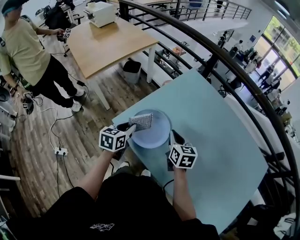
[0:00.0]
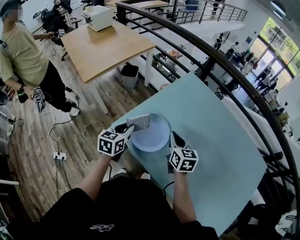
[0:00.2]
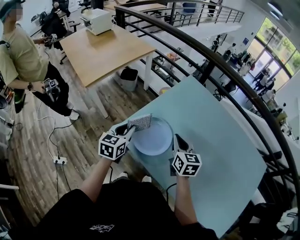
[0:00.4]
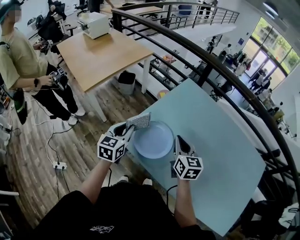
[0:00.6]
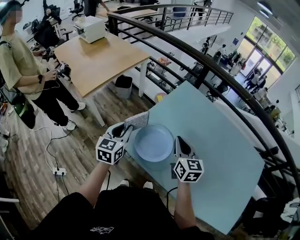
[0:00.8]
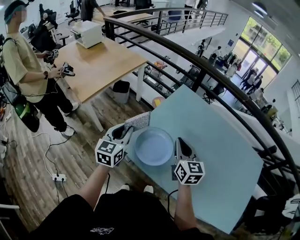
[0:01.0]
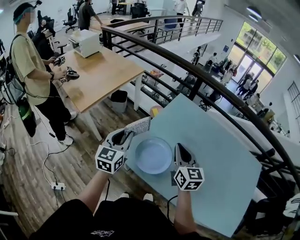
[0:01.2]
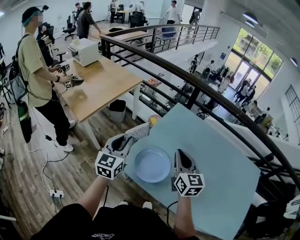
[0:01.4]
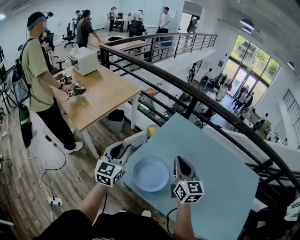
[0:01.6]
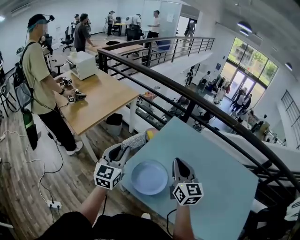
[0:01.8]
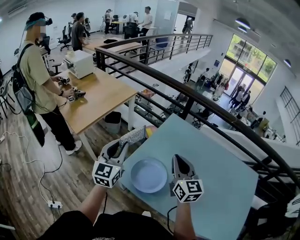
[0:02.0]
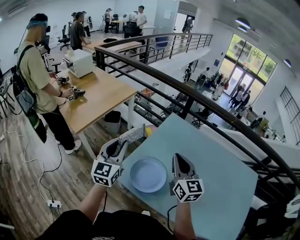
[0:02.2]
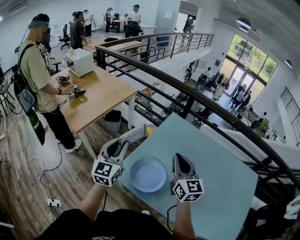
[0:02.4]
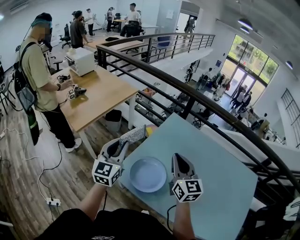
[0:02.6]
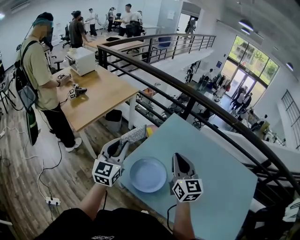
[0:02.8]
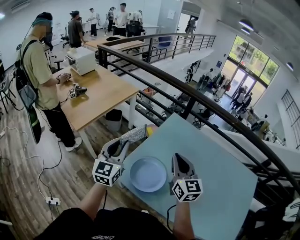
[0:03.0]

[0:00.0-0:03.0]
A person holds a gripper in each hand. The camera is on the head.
0:00.0 to 0:01.6: The left gripper heads upward and to the left, covering some 20 cm, and changes its angle by about 30 degrees; the right gripper is displaced upward by some 20 cm, and rotates roughly 30 degrees.
0:01.6 to 0:03.0: The grippers move only a little.

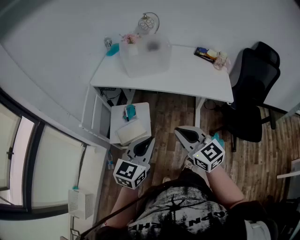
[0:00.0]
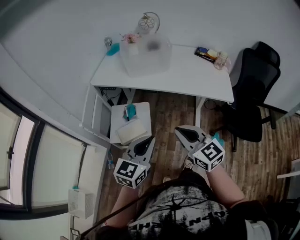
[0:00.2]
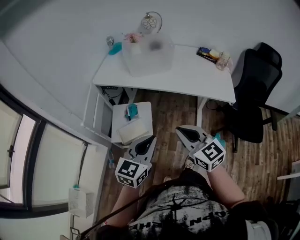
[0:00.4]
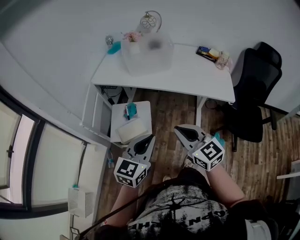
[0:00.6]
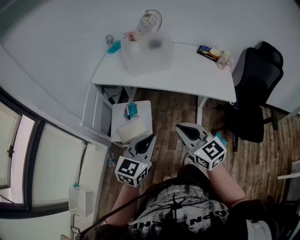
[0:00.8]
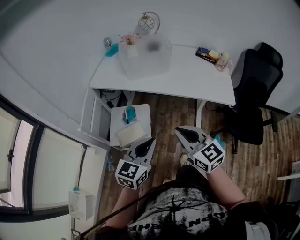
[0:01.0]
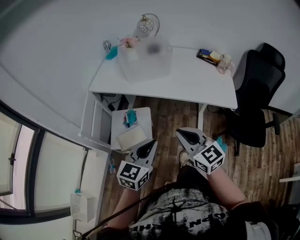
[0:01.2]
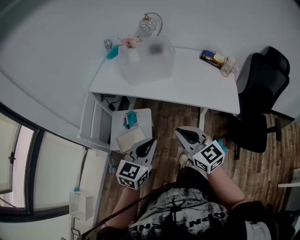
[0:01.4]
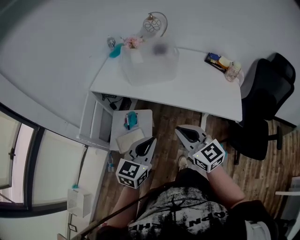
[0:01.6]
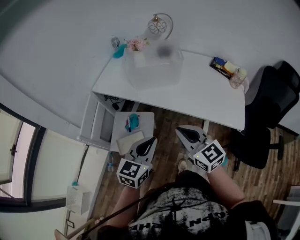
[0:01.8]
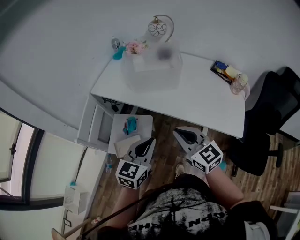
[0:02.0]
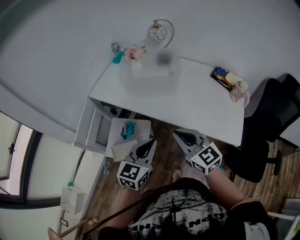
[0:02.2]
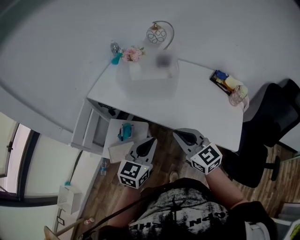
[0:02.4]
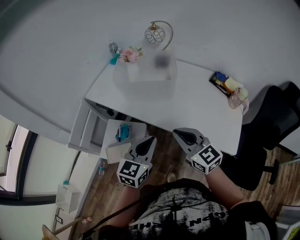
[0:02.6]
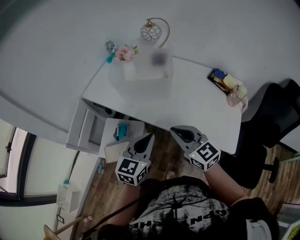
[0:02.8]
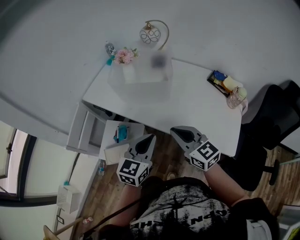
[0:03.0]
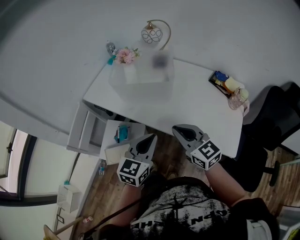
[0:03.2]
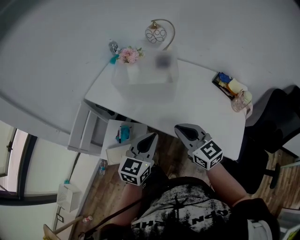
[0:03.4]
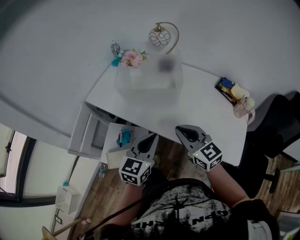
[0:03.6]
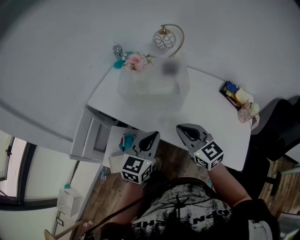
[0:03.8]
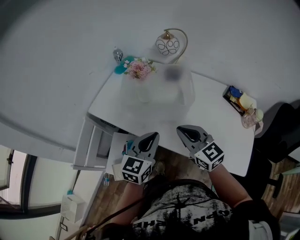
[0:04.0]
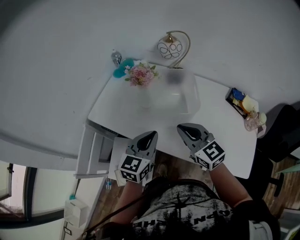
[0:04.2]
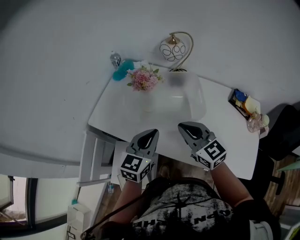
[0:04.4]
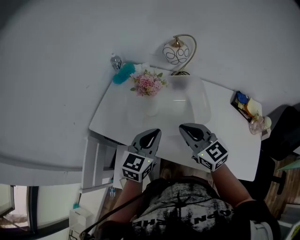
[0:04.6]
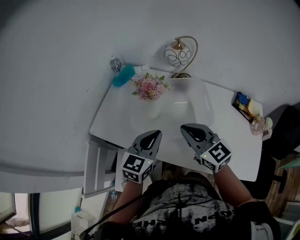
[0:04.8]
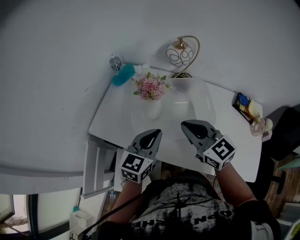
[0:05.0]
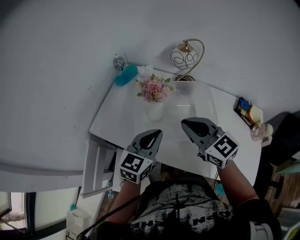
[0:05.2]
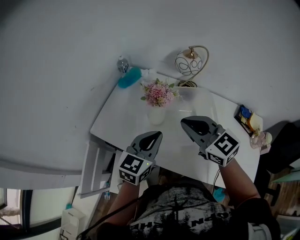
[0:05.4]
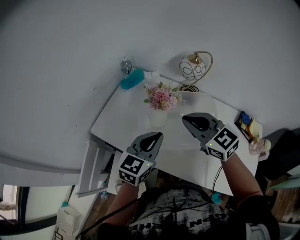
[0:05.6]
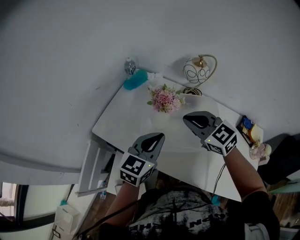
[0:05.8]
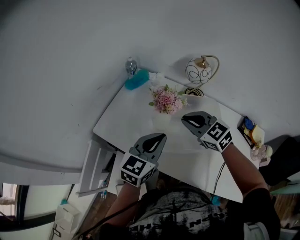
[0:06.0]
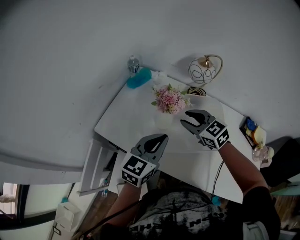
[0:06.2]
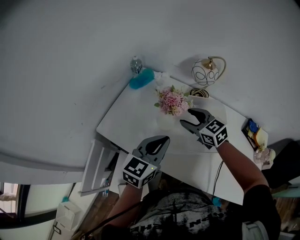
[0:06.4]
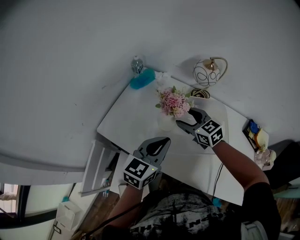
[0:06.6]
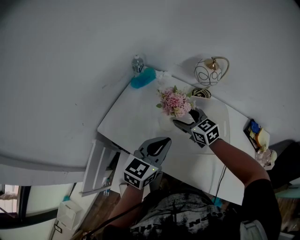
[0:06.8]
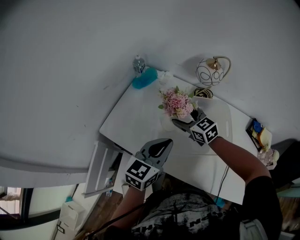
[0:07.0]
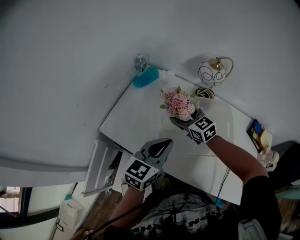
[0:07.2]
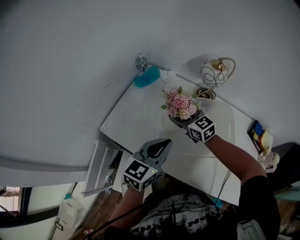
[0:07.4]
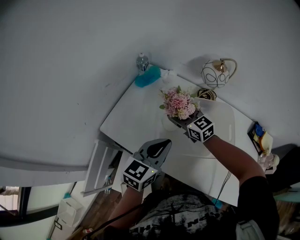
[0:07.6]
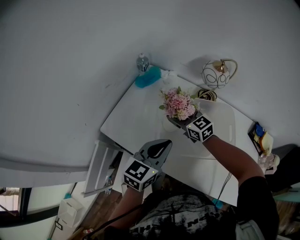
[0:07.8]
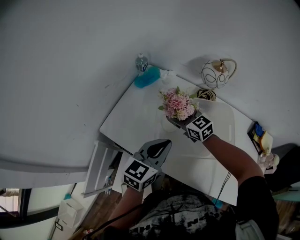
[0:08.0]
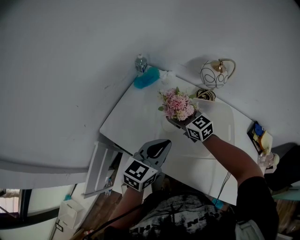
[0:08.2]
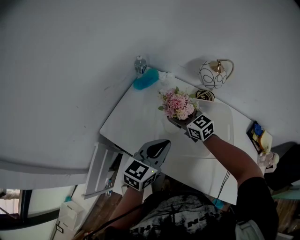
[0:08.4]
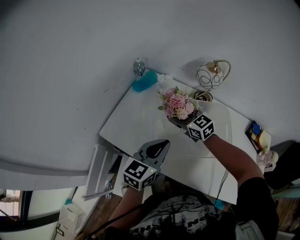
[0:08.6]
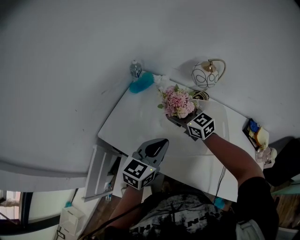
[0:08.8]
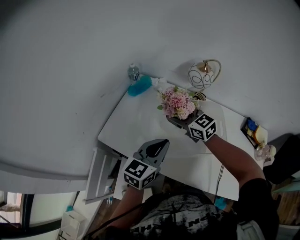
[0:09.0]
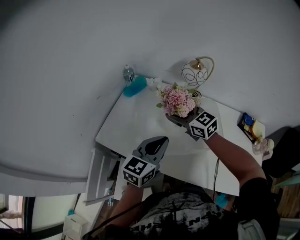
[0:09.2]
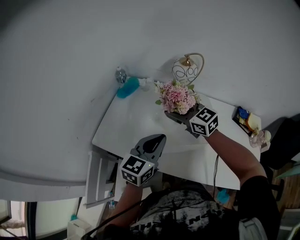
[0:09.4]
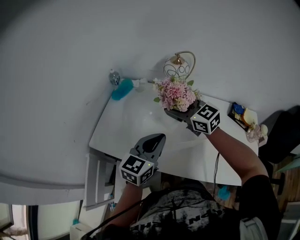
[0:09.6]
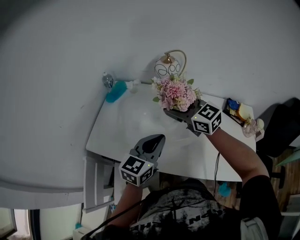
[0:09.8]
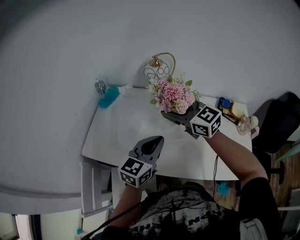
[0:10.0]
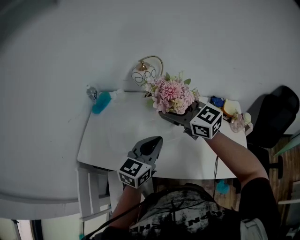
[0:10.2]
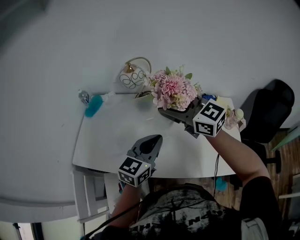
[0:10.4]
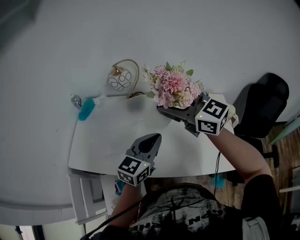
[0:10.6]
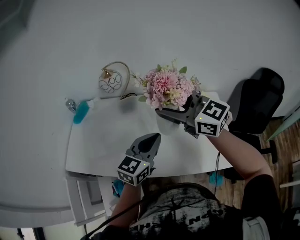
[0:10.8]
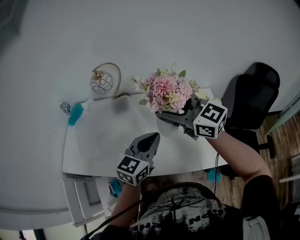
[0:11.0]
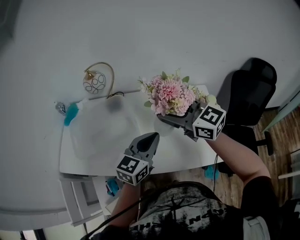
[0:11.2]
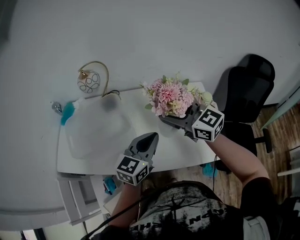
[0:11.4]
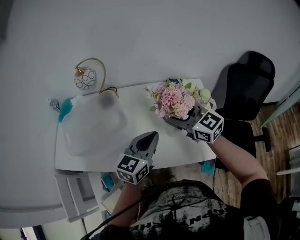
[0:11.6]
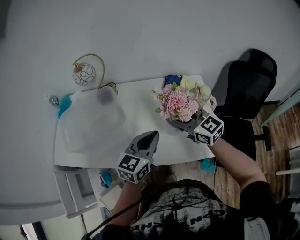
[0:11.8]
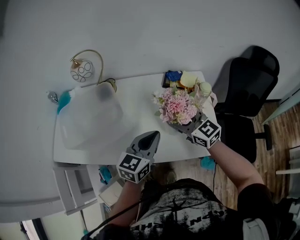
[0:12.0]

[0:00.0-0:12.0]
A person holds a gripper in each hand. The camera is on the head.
0:00.0 to 0:01.6: Both grippers travel together forward, about 15 cm.
0:01.6 to 0:03.0: Both grippers travel together forward and to the right, roughly 20 cm.
0:03.0 to 0:04.4: The two grippers go roughly 25 cm forward.
0:04.4 to 0:06.0: The left gripper moves forward, about 10 cm; the right gripper travels forward by approximately 15 cm, and changes its angle by approximately 30 degrees.
0:06.0 to 0:07.6: The right gripper travels forward, downward and to the left by about 15 cm, and opens up.
0:07.6 to 0:09.0: The right gripper heads upward, covering roughly 5 cm.
0:09.0 to 0:10.4: The left gripper is displaced to the right by some 20 cm, while the right gripper shifts roughly 30 cm to the right, upward and backward.
0:10.4 to 0:12.0: The right gripper heads to the right and downward, covering some 30 cm, while the left gripper goes about 20 cm to the right.

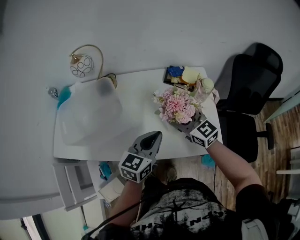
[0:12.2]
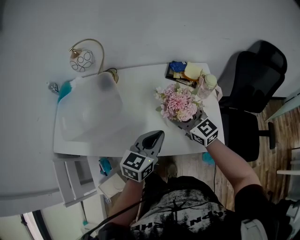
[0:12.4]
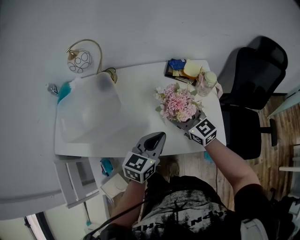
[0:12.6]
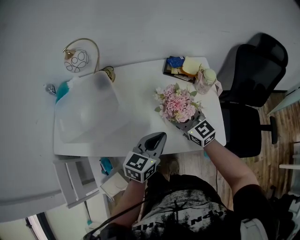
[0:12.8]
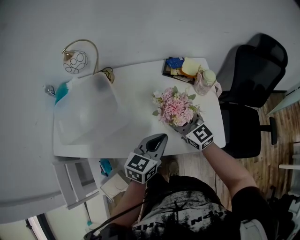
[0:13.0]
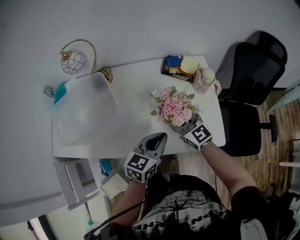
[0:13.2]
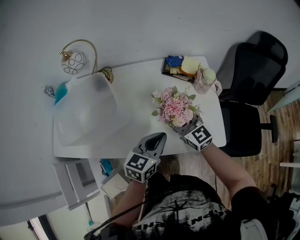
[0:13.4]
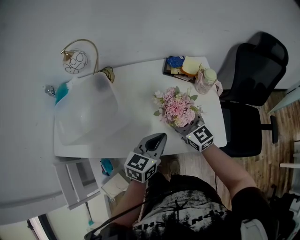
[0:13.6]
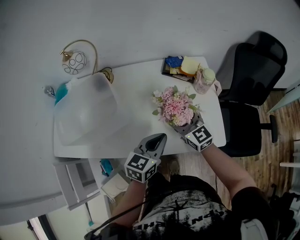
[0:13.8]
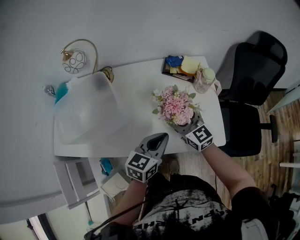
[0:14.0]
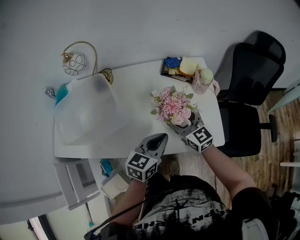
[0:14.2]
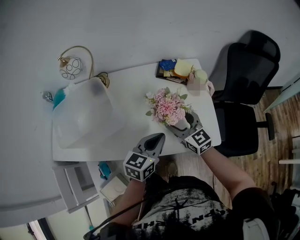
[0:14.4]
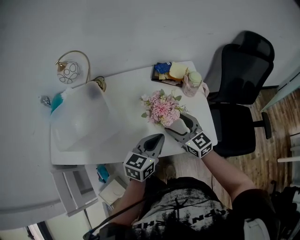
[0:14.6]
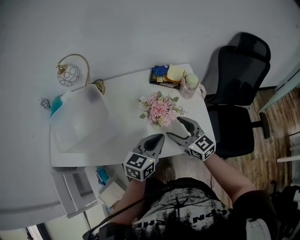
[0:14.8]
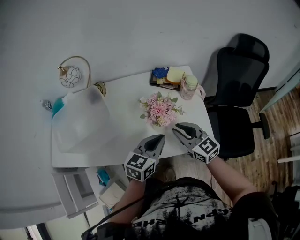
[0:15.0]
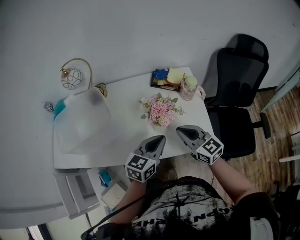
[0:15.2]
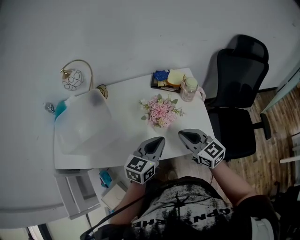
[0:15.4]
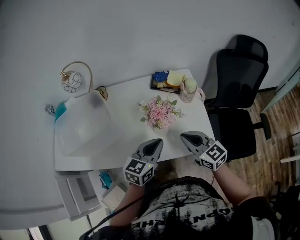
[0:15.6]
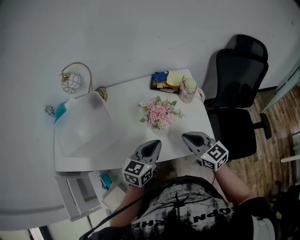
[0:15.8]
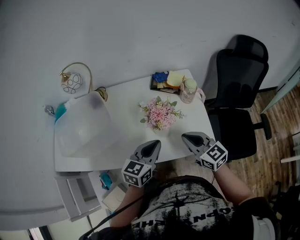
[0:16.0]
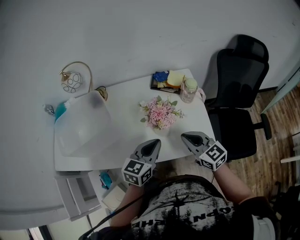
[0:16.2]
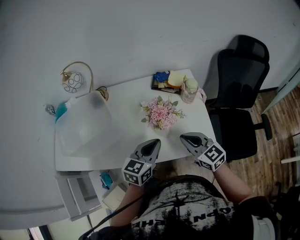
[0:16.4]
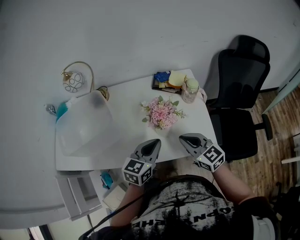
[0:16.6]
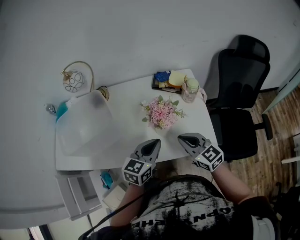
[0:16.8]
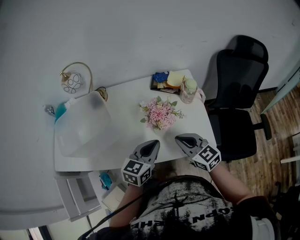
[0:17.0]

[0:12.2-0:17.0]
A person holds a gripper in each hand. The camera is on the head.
0:12.2 to 0:13.8: The left gripper heads downward, covering some 5 cm.
0:13.8 to 0:15.4: The right gripper shifts about 10 cm backward and to the right, and closes. Meanwhile the left gripper moves roughly 5 cm.
0:15.4 to 0:17.0: The grippers make only small movements.

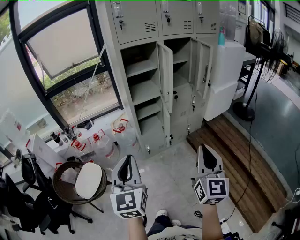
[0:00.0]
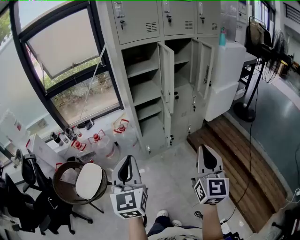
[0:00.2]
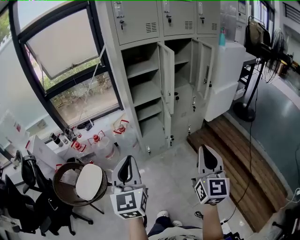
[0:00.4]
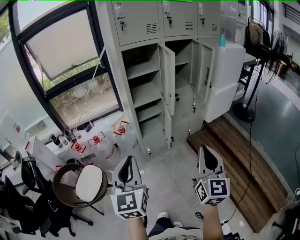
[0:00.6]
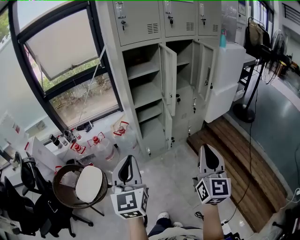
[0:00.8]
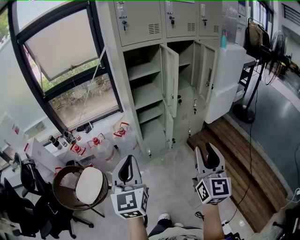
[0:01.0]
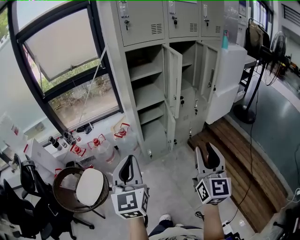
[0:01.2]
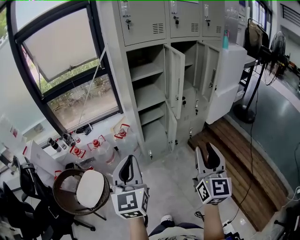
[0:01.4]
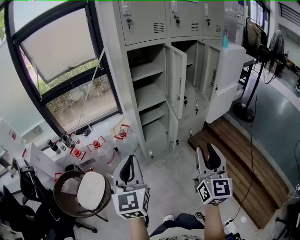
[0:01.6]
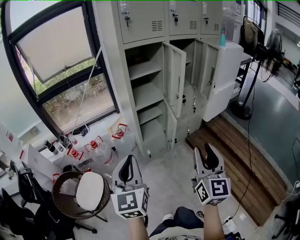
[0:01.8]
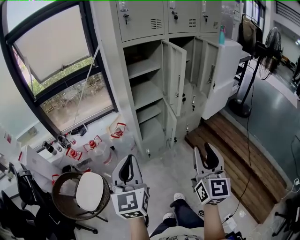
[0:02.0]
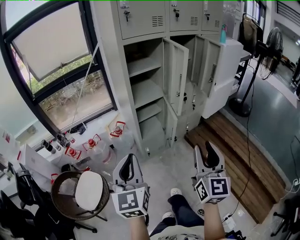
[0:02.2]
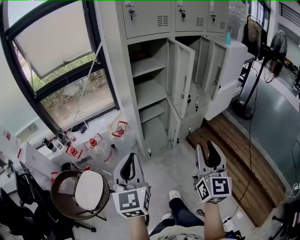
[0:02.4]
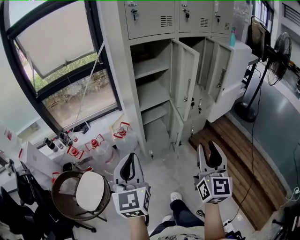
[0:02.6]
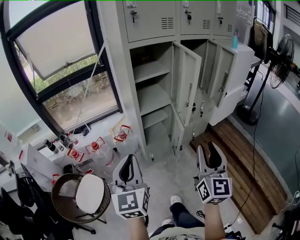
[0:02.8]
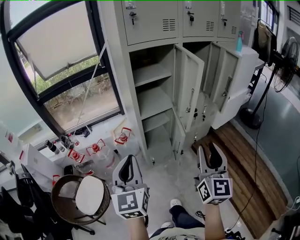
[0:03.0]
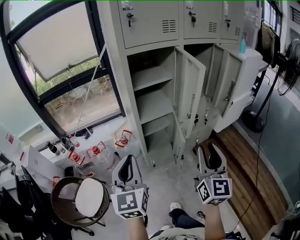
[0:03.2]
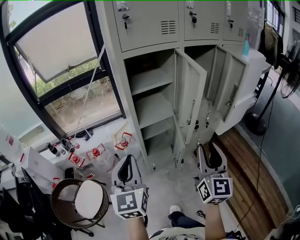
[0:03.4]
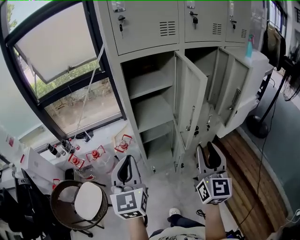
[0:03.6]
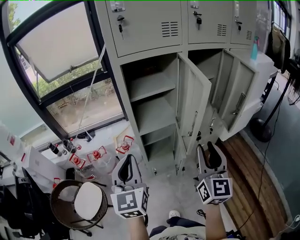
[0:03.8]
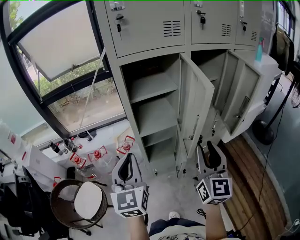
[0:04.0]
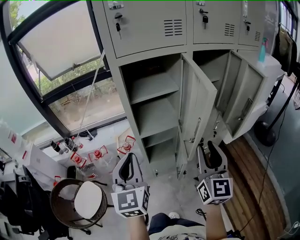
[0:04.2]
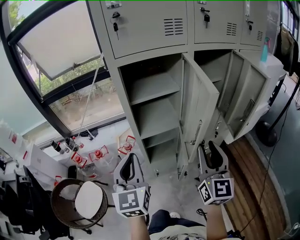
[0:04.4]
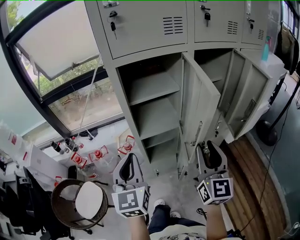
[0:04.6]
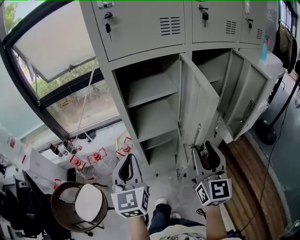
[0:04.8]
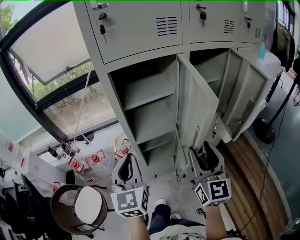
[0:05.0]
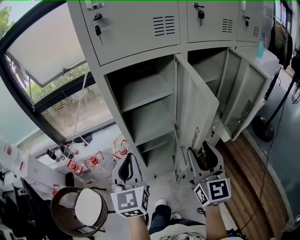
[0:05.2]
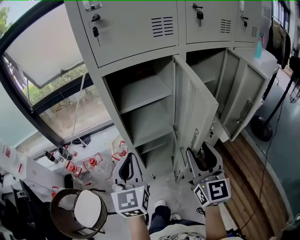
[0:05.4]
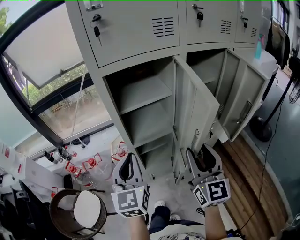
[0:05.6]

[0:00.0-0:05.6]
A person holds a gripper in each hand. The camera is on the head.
0:00.0 to 0:01.4: The right gripper goes roughly 10 cm to the left and forward, and opens its fingers. Meanwhile the left gripper shifts roughly 10 cm forward and to the left.
0:01.4 to 0:02.8: Both grippers travel together forward, approximately 10 cm.
0:02.8 to 0:04.2: The two grippers go about 20 cm forward.
0:04.2 to 0:05.6: The left gripper shifts roughly 5 cm forward; the right gripper changes place by about 5 cm.
